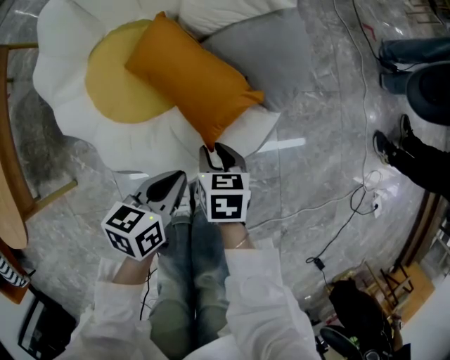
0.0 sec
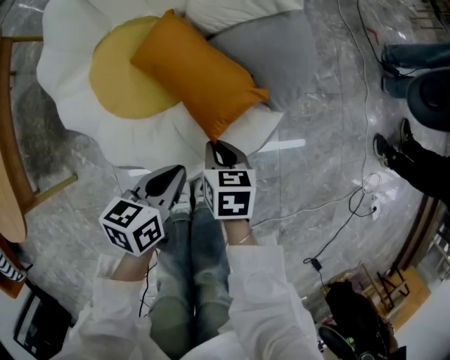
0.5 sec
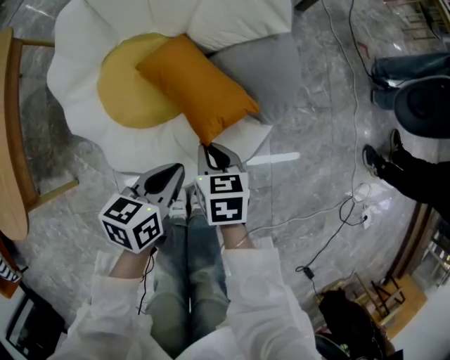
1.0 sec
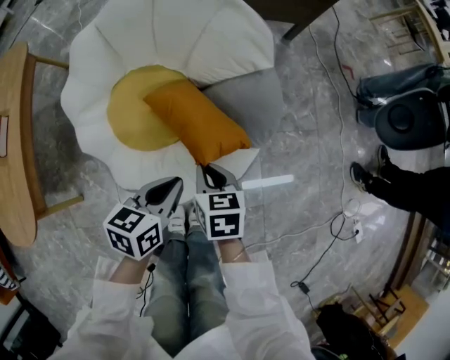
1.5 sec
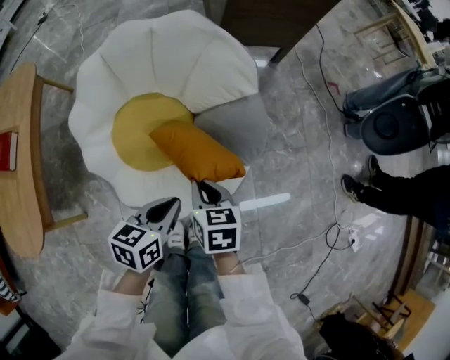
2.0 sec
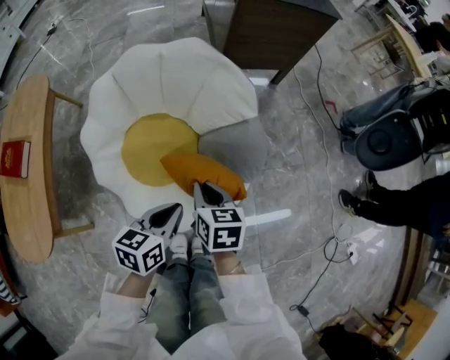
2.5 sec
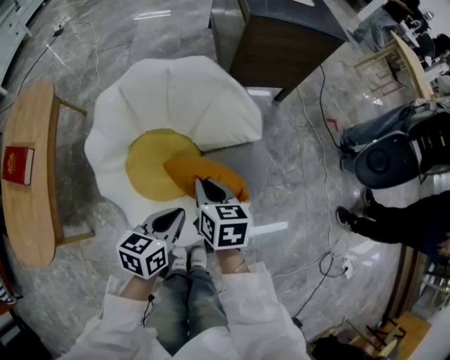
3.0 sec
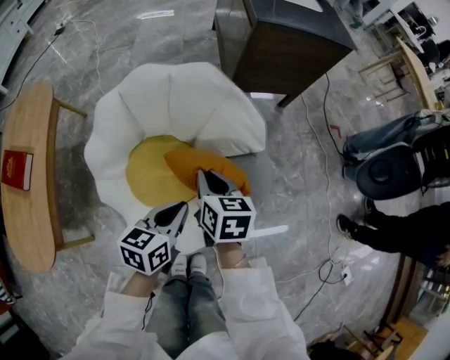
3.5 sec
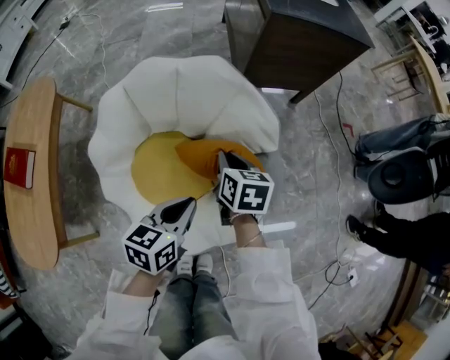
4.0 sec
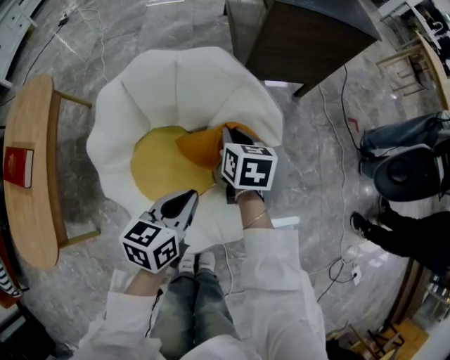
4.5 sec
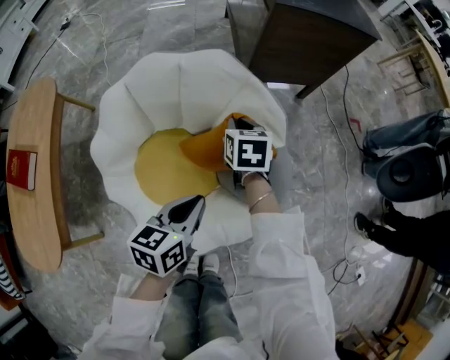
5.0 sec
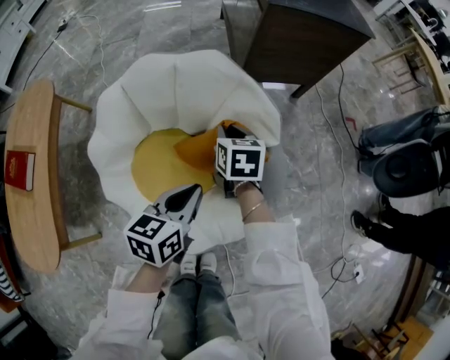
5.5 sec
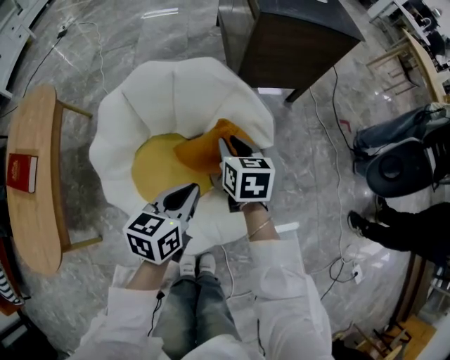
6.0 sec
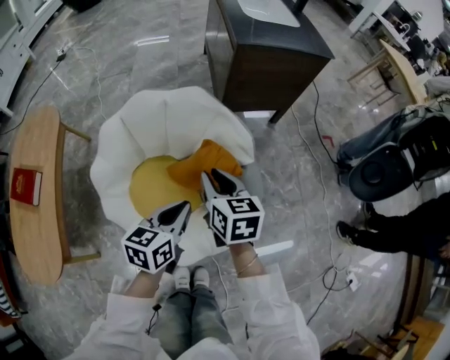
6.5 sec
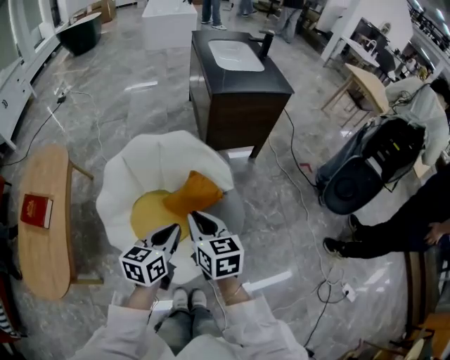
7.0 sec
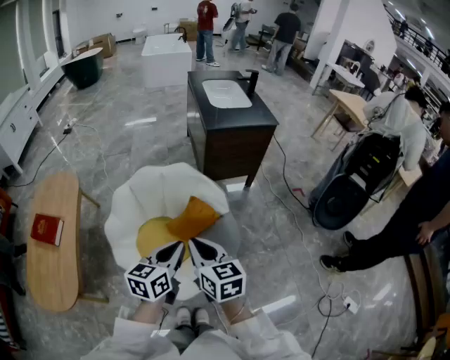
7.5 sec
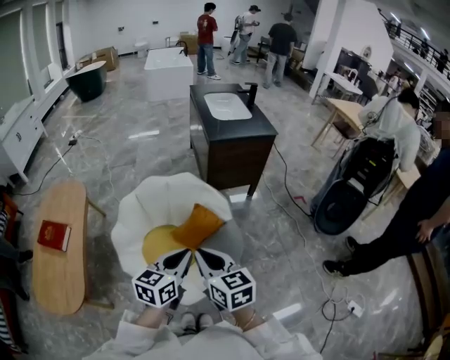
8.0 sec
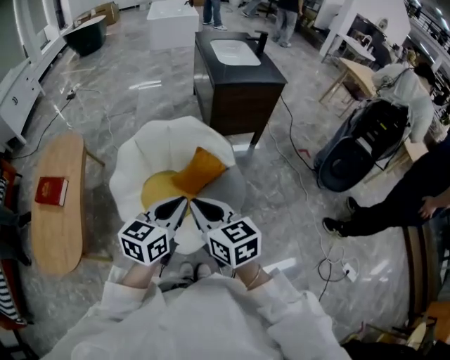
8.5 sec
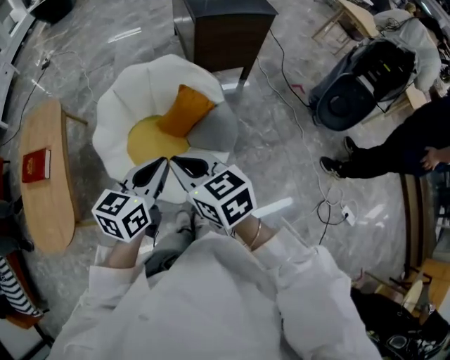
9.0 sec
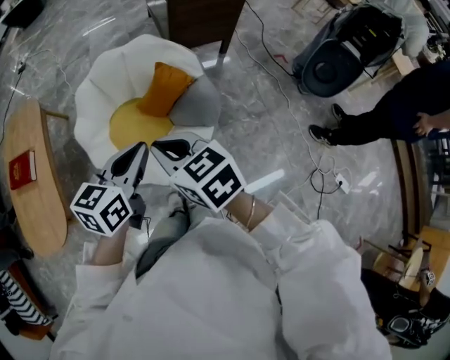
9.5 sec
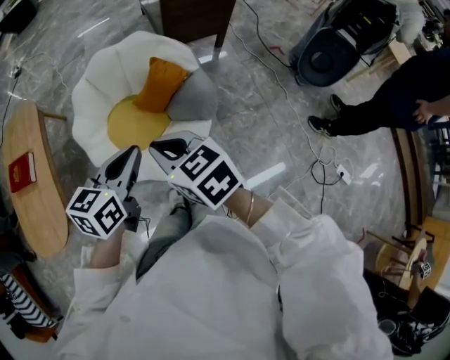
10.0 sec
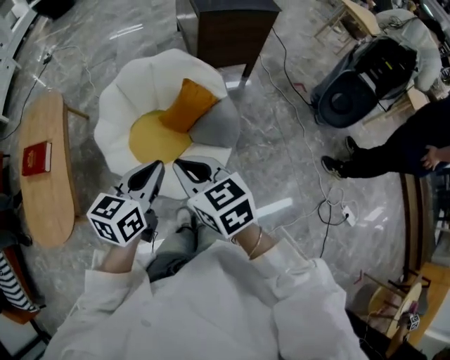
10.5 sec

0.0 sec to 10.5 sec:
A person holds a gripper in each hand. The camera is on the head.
0.0 sec to 2.0 sec: The grippers both shift upward by about 20 cm. The right gripper closes.
2.0 sec to 4.0 sec: The left gripper heads forward, covering approximately 15 cm. Meanwhile the right gripper is displaced forward by about 25 cm.
4.0 sec to 6.5 sec: The left gripper moves upward, roughly 10 cm. Meanwhile the right gripper moves upward and backward, approximately 15 cm.
6.5 sec to 8.5 sec: The right gripper travels backward and upward by approximately 35 cm. Meanwhile the left gripper goes about 30 cm upward and backward.
8.5 sec to 10.5 sec: The grippers both shift downward and backward by about 10 cm.

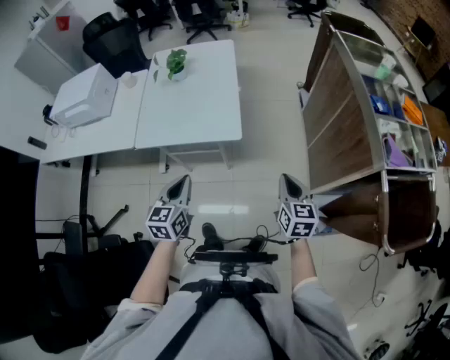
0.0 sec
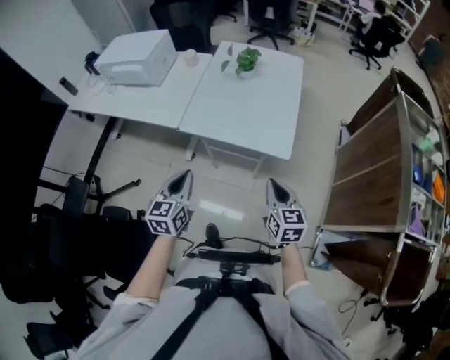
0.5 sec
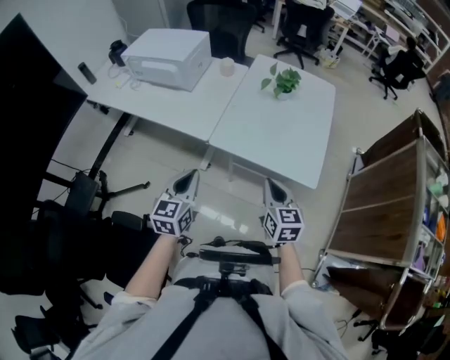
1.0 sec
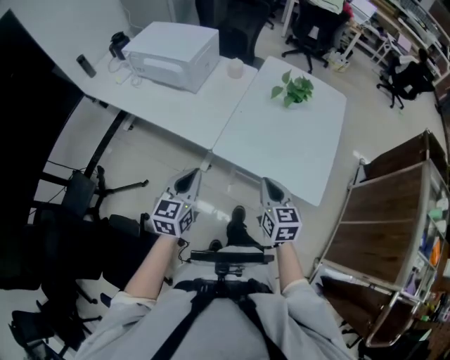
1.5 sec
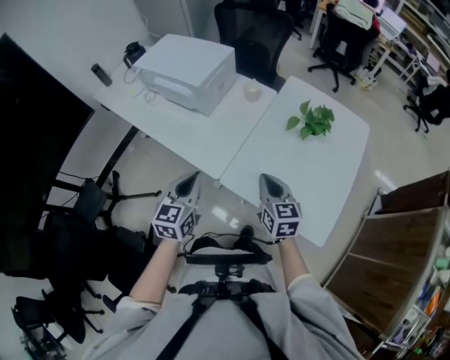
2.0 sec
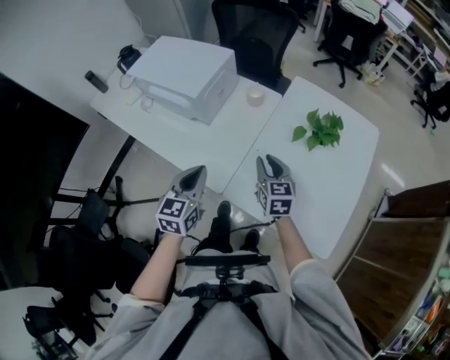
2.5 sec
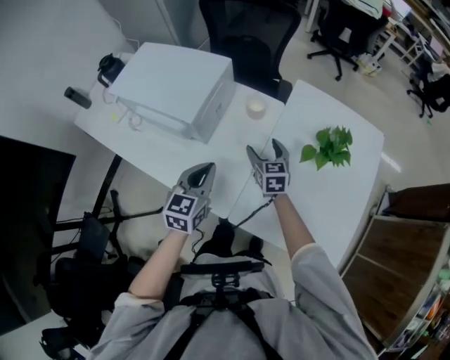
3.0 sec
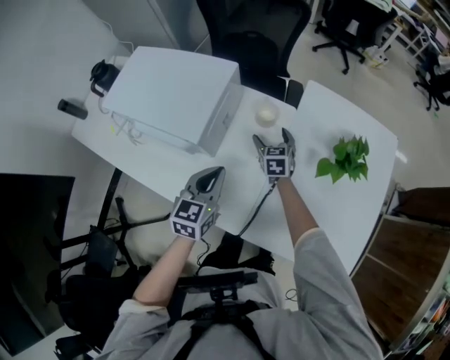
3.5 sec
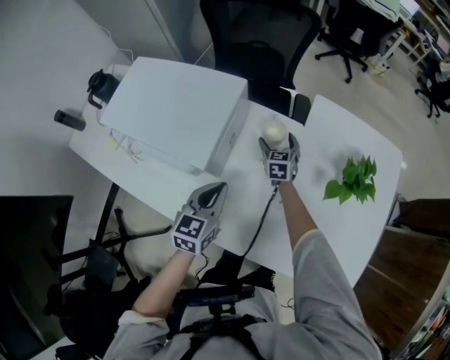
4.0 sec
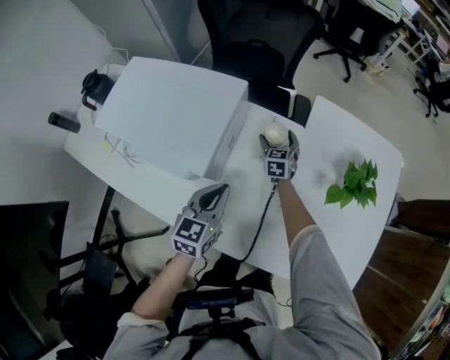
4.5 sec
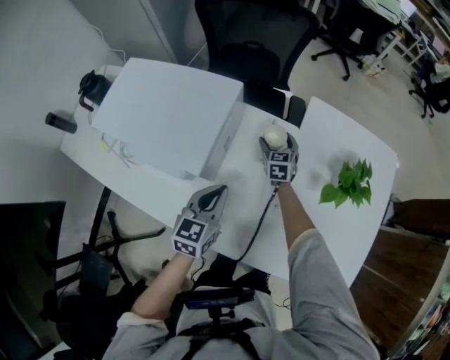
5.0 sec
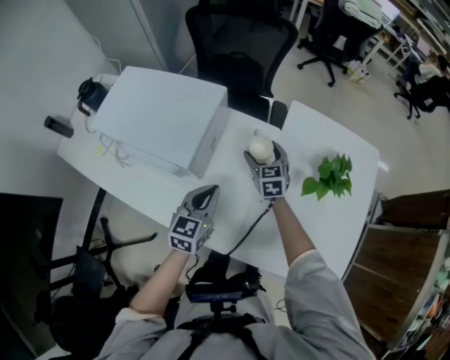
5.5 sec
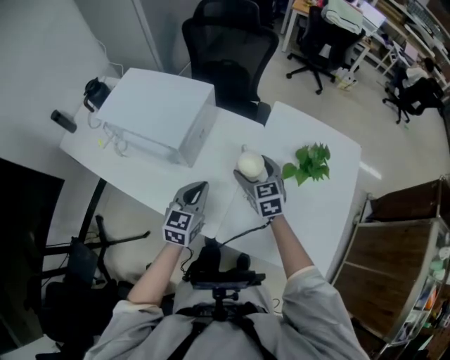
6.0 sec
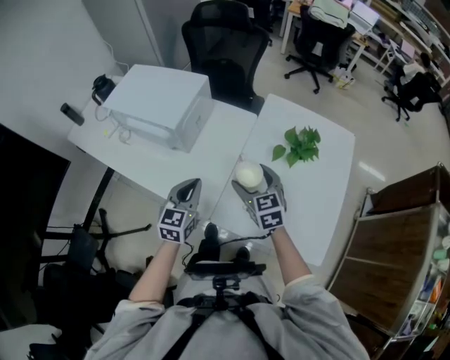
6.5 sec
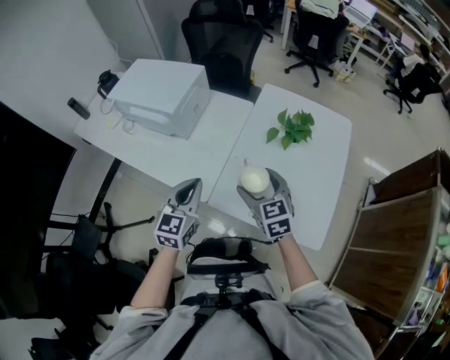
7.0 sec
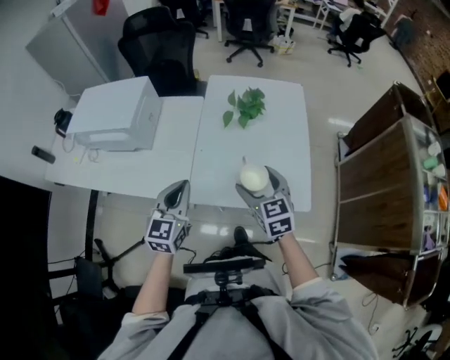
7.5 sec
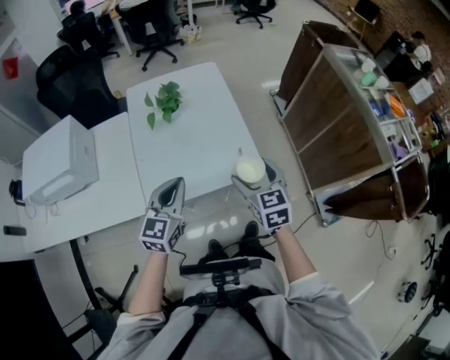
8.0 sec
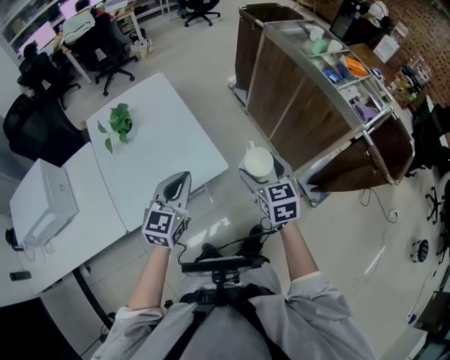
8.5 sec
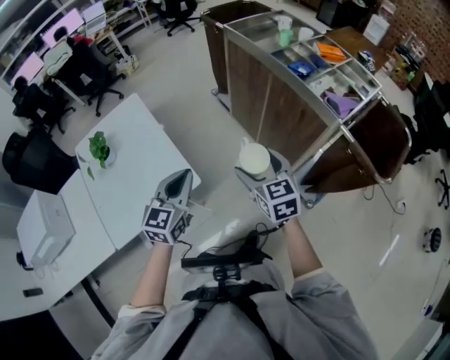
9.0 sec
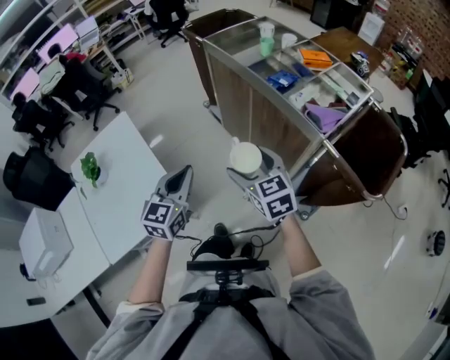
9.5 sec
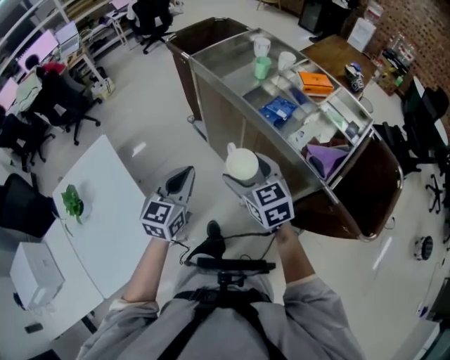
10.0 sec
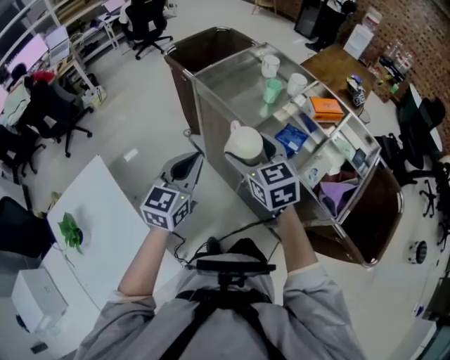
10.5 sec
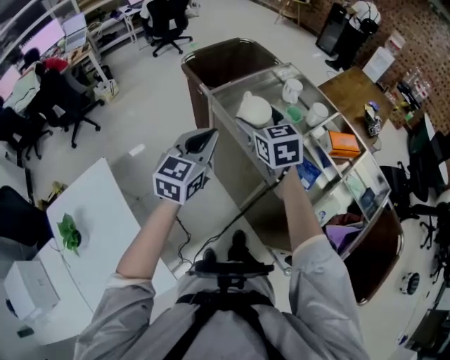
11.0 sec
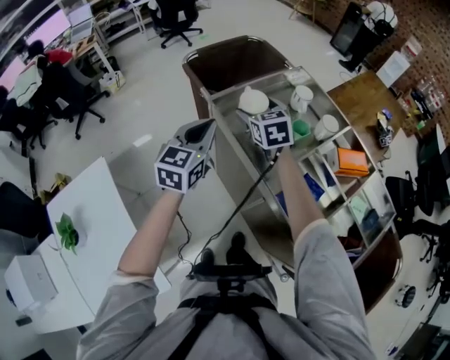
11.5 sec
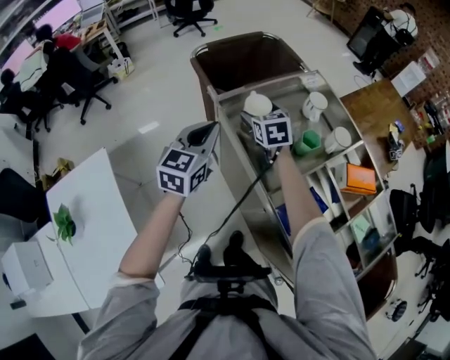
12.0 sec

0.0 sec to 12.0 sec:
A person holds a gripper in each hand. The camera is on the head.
0.0 sec to 2.0 sec: Both grippers are carried roughly 50 cm. The right gripper swivels roughly 40 degrees, while the left gripper rotates about 20 degrees.
2.0 sec to 4.0 sec: The left gripper shifts some 35 cm forward, while the right gripper goes approximately 50 cm forward and downward, turns by roughly 20 degrees, and opens.
4.0 sec to 6.0 sec: The left gripper is displaced backward and to the right by roughly 10 cm; the right gripper goes some 25 cm backward and upward.
6.0 sec to 8.0 sec: The left gripper shifts by about 40 cm, and changes its angle by some 40 degrees; the right gripper moves roughly 50 cm, and swivels some 40 degrees.
8.0 sec to 10.0 sec: Both grippers are carried to the right and forward, roughly 60 cm. The left gripper rotates about 30 degrees.
10.0 sec to 12.0 sec: The two grippers travel together, forward, some 50 cm.

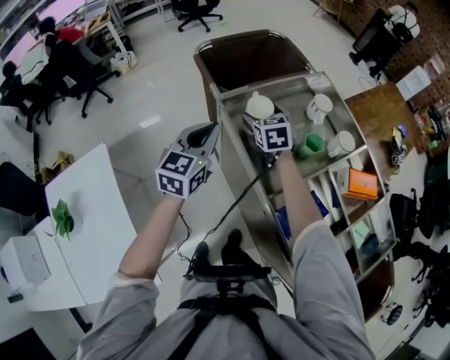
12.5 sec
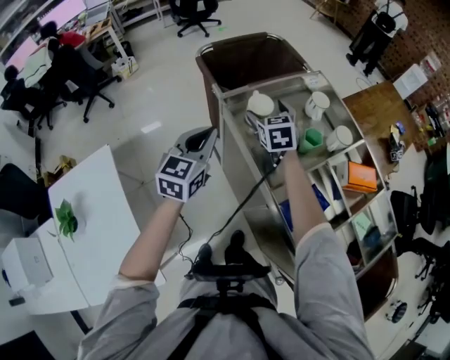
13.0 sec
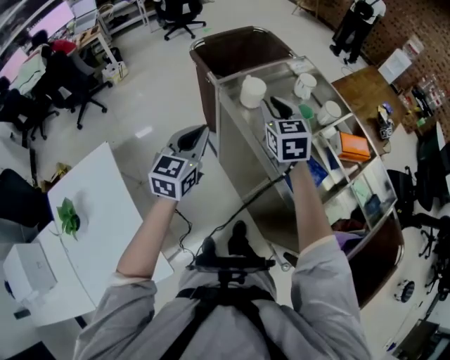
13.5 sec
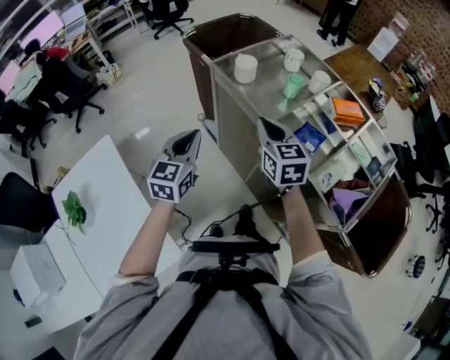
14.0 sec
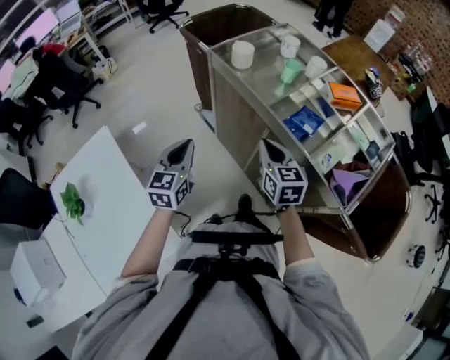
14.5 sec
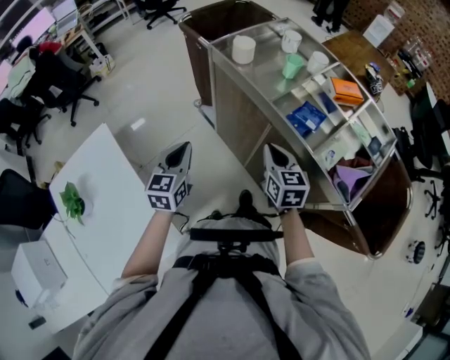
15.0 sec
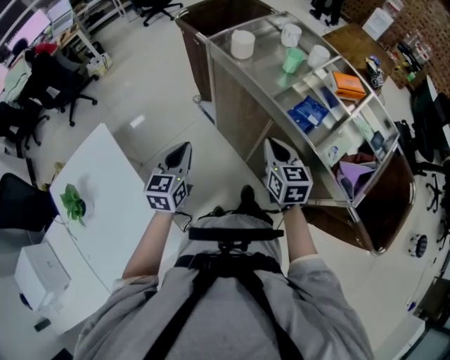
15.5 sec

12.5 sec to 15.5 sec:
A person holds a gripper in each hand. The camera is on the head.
12.5 sec to 14.0 sec: The two grippers go about 25 cm backward. The right gripper closes up.
14.0 sec to 15.5 sec: The left gripper goes roughly 10 cm downward and backward, while the right gripper goes approximately 15 cm backward and downward.

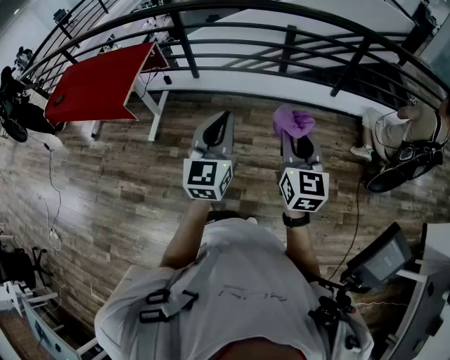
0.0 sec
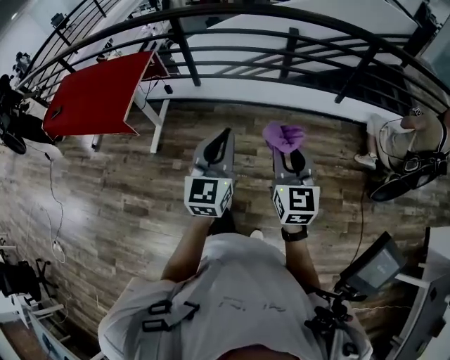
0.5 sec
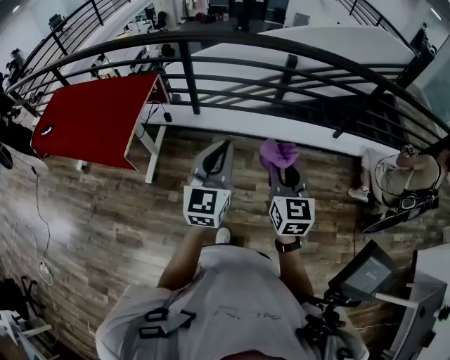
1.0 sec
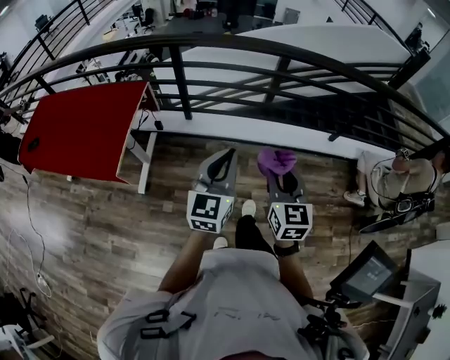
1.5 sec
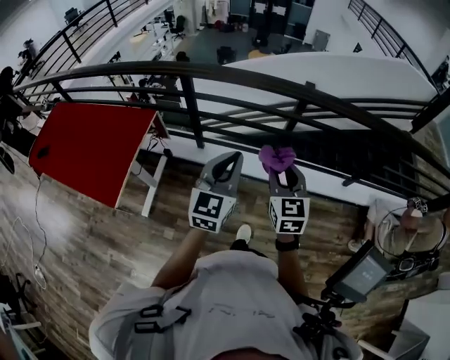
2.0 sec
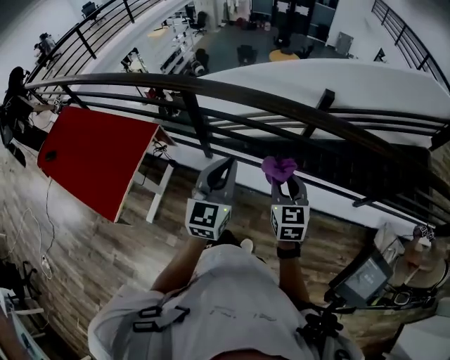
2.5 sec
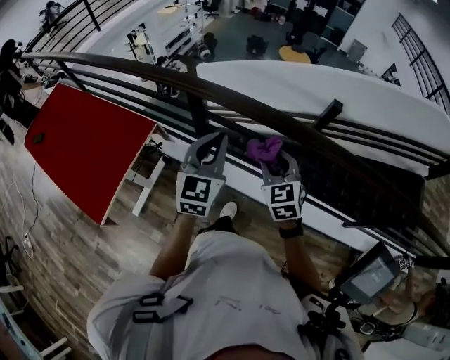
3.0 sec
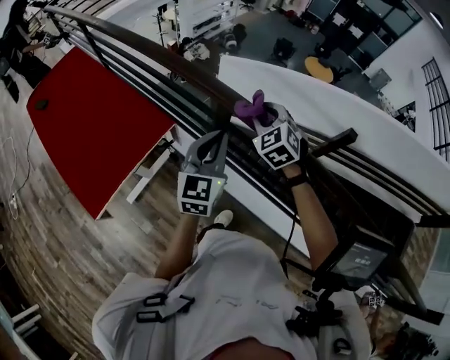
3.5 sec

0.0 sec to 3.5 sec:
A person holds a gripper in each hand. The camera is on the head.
0.0 sec to 2.0 sec: The two grippers travel together, forward, some 50 cm.
2.0 sec to 3.5 sec: The left gripper changes place by about 40 cm, and turns by approximately 30 degrees. Meanwhile the right gripper ends up roughly 50 cm from where it was, and turns by some 60 degrees.
